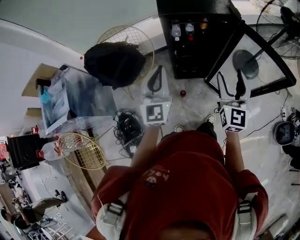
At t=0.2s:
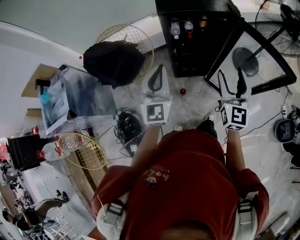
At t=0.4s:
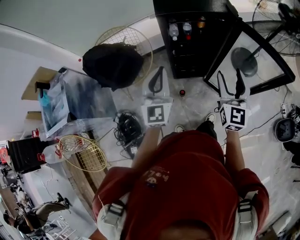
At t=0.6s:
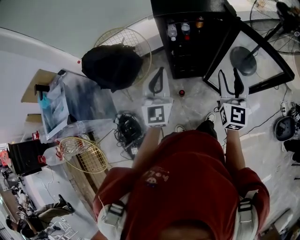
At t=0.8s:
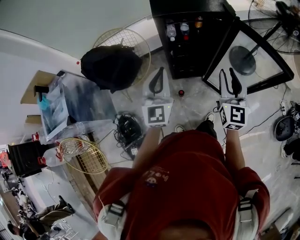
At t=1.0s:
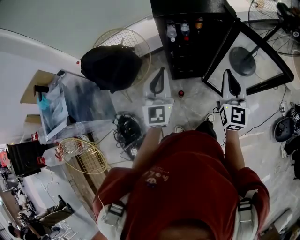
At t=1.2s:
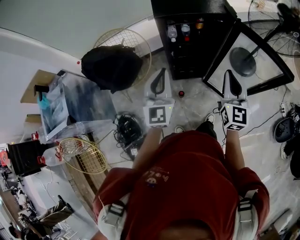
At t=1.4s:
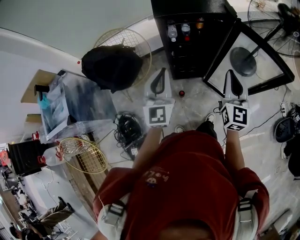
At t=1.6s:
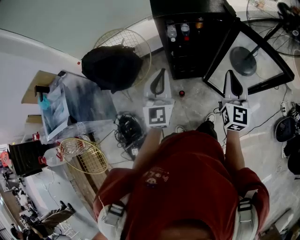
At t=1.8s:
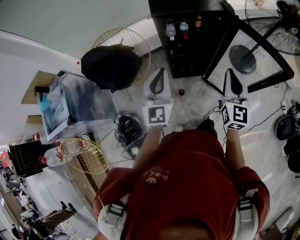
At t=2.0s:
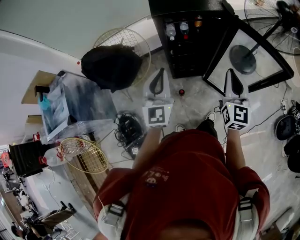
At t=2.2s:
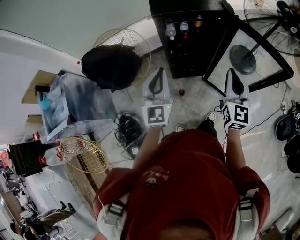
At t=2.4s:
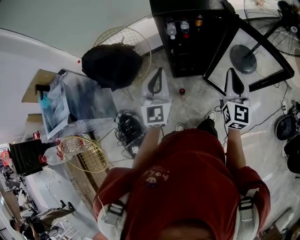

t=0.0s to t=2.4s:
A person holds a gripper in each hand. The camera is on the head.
t=0.0s to t=1.2s: The right gripper closes up.
t=1.2s to t=2.4s: There are only small adjustments of the grippers.

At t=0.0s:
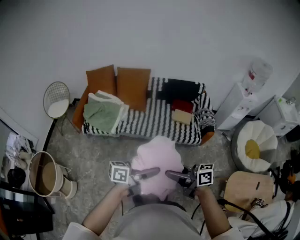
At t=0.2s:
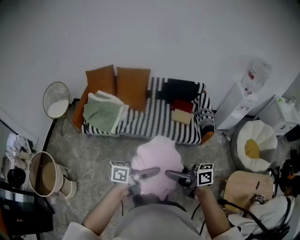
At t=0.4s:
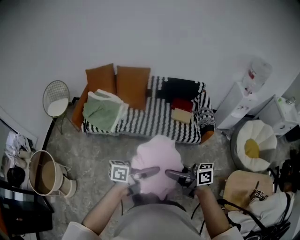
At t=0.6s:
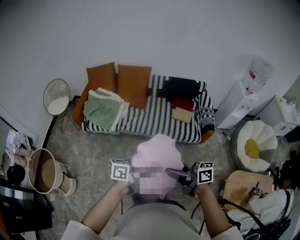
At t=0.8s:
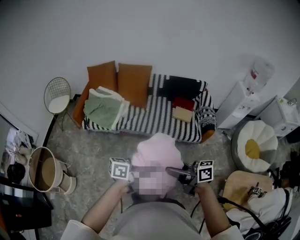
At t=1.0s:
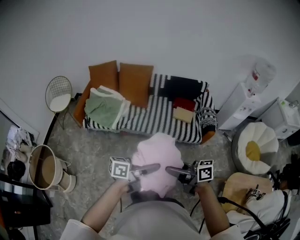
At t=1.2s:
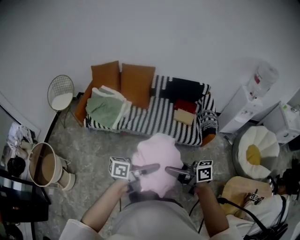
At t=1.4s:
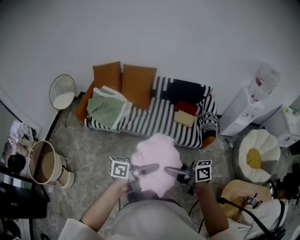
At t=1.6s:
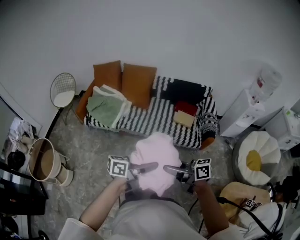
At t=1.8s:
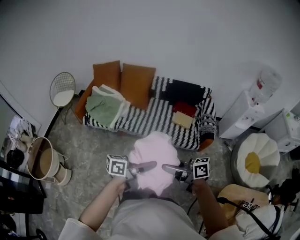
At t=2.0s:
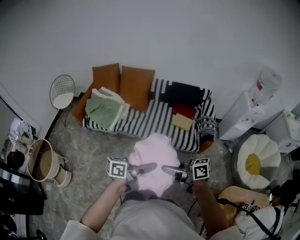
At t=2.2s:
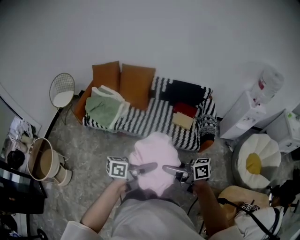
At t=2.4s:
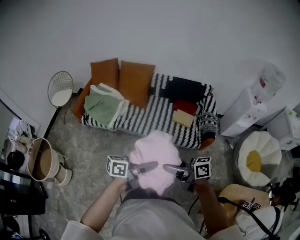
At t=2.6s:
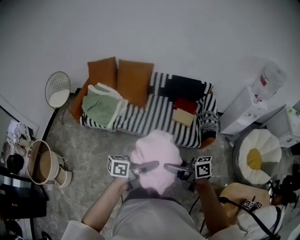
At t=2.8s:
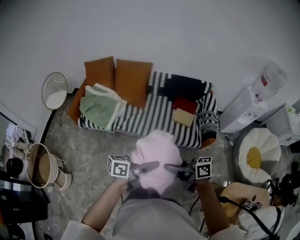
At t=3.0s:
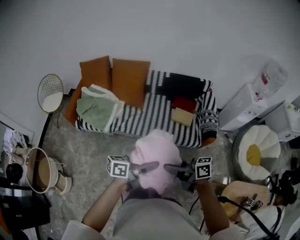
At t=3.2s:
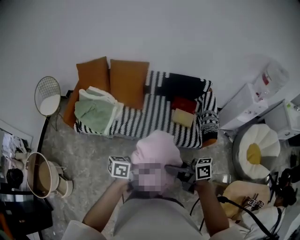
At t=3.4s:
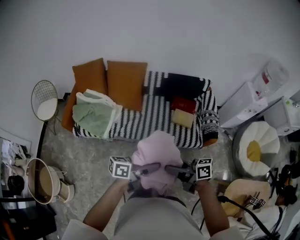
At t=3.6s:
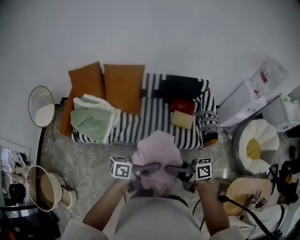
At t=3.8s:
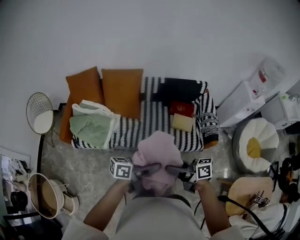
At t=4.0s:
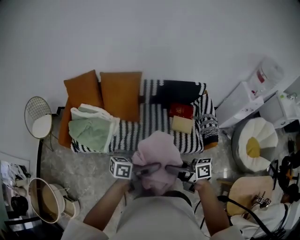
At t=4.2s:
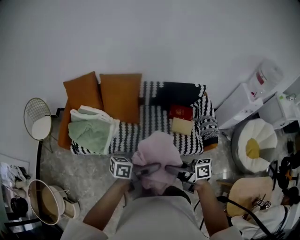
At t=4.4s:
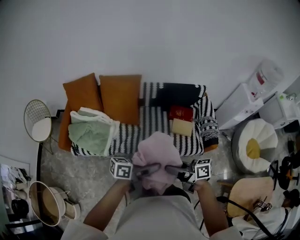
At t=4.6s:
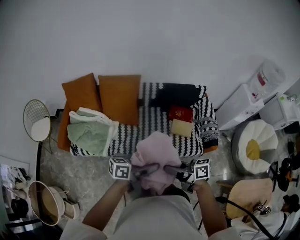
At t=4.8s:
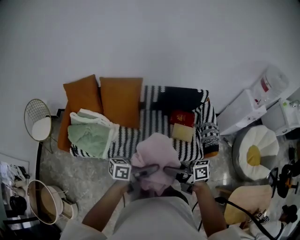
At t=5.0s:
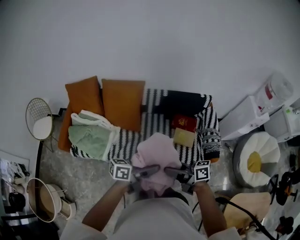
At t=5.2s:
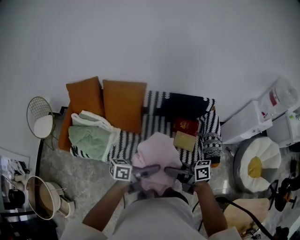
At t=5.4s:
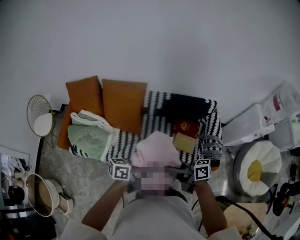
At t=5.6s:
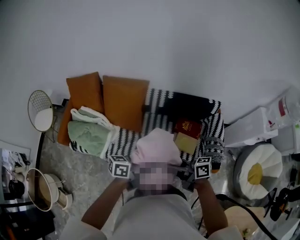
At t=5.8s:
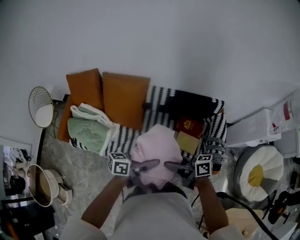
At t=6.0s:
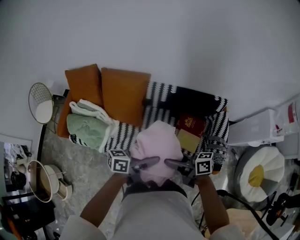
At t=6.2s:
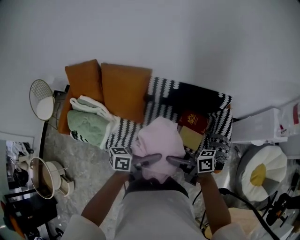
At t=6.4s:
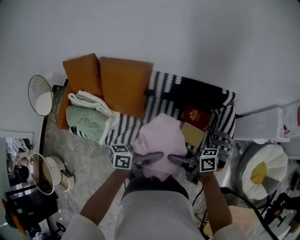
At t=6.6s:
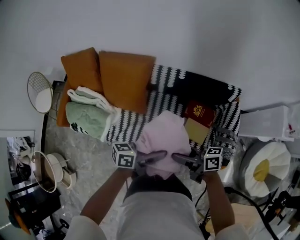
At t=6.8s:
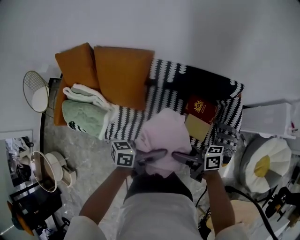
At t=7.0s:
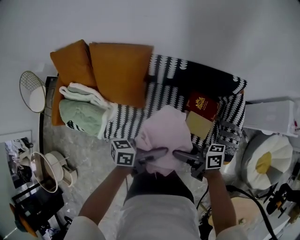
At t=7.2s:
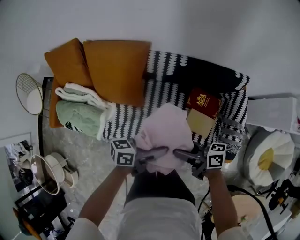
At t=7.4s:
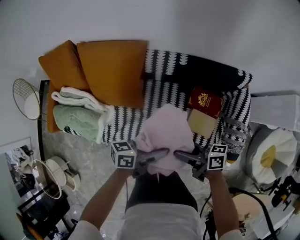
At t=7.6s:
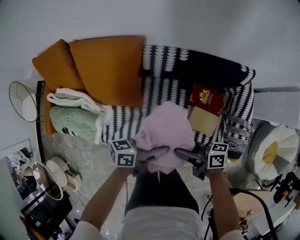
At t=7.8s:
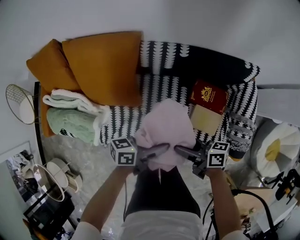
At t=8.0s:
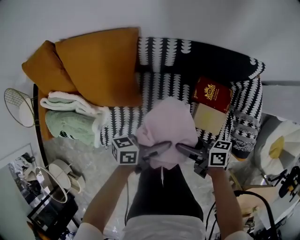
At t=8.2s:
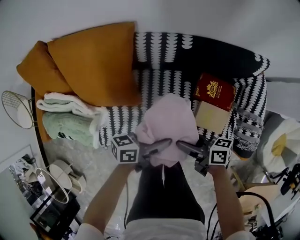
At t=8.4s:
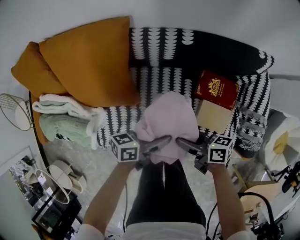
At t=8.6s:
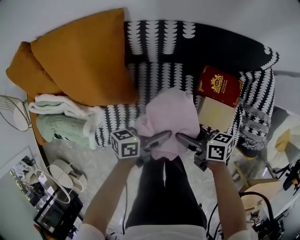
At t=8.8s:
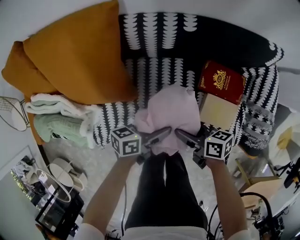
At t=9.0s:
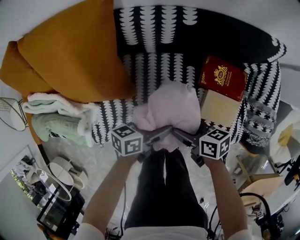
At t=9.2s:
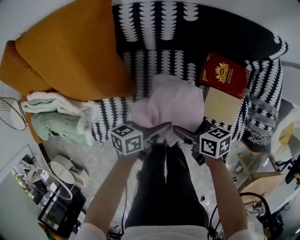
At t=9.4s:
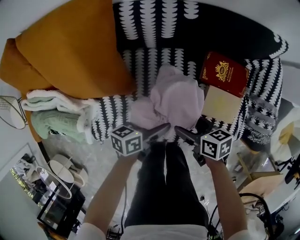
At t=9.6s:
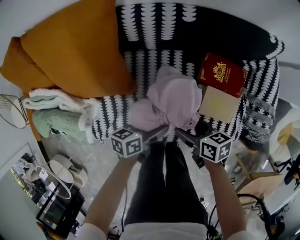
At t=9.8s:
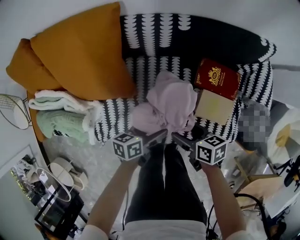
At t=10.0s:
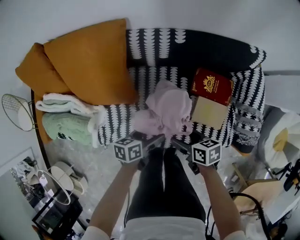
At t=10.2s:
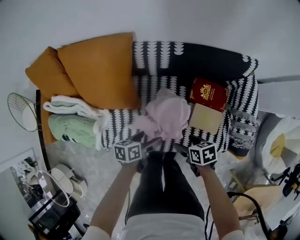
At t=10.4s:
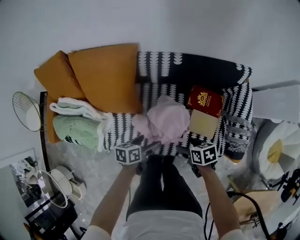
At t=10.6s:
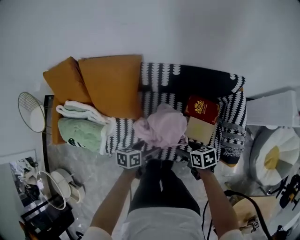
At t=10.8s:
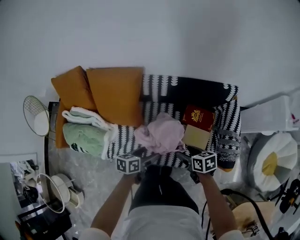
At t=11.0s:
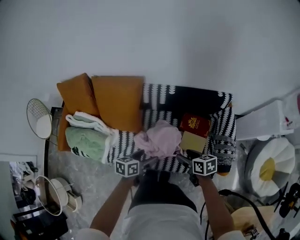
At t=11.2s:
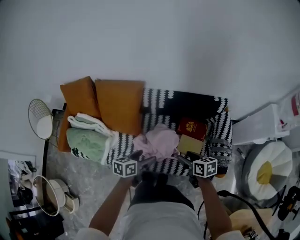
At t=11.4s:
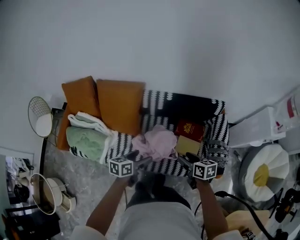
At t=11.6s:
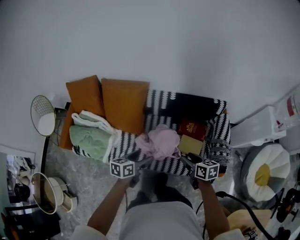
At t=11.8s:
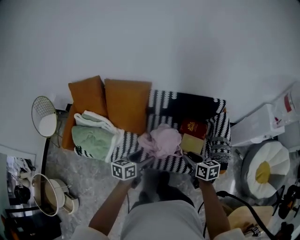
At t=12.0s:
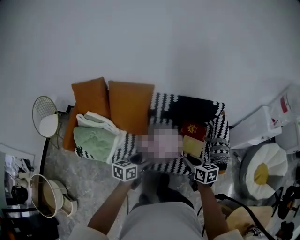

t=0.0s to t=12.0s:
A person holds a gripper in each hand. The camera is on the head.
t=0.0s to t=1.6s: The left gripper shifts by roughly 10 cm. Meanwhile the right gripper shifts by roughly 10 cm.
t=1.6s to t=3.0s: The right gripper changes place by about 20 cm. Meanwhile the left gripper changes place by some 20 cm.
t=3.0s to t=4.4s: The right gripper changes place by some 20 cm. The left gripper ends up approximately 20 cm from where it was.
t=4.4s to t=6.0s: The right gripper changes place by approximately 30 cm; the left gripper shifts by approximately 30 cm.
t=6.0s to t=7.6s: The two grippers go about 25 cm downward.
t=7.6s to t=9.0s: Both grippers move downward, some 25 cm. The right gripper changes its angle by about 30 degrees.
t=9.0s to t=10.4s: Both grippers travel together upward, approximately 15 cm. The right gripper rotates roughly 20 degrees.
t=10.4s to t=12.0s: Both grippers move upward, some 30 cm. The left gripper changes its angle by some 30 degrees; the right gripper rotates about 30 degrees, and closes its fingers.

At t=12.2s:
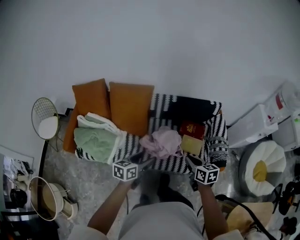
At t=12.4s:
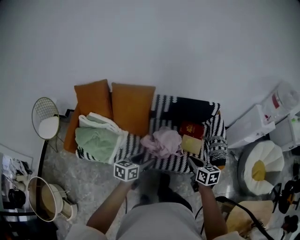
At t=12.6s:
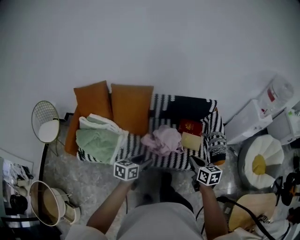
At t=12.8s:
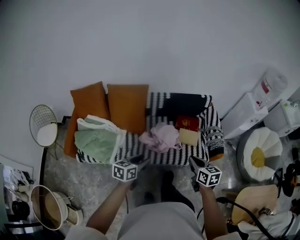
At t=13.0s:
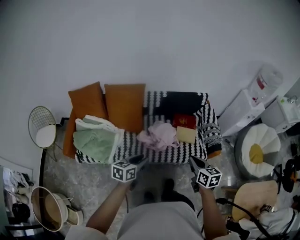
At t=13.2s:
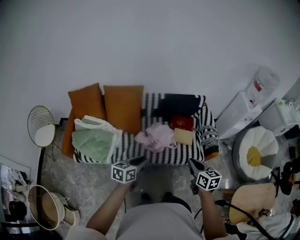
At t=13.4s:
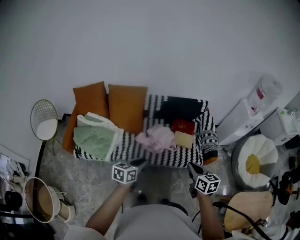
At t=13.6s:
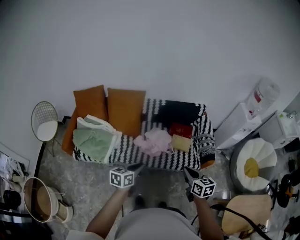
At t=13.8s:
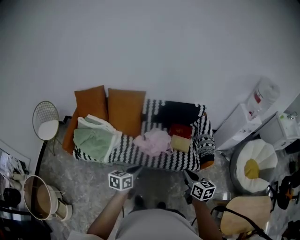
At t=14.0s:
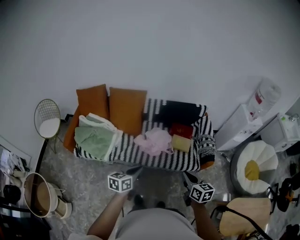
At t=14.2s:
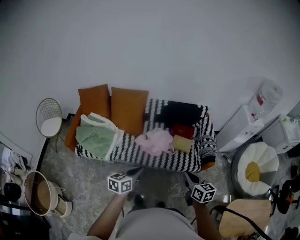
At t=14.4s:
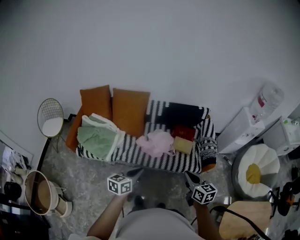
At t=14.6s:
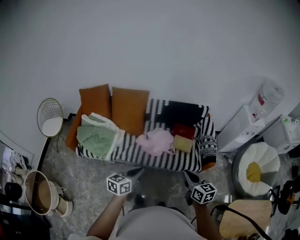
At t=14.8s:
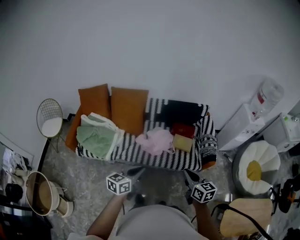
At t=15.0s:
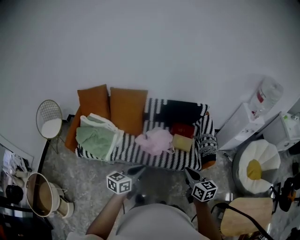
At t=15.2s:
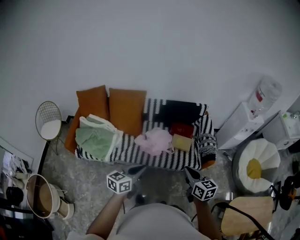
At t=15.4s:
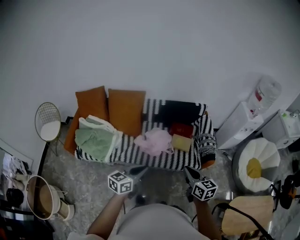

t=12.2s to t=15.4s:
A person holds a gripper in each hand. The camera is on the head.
t=12.2s to t=13.8s: The grippers both shift backward by roughly 25 cm. The left gripper closes.
t=13.8s to t=15.4s: The left gripper heads to the right and upward, covering approximately 5 cm.

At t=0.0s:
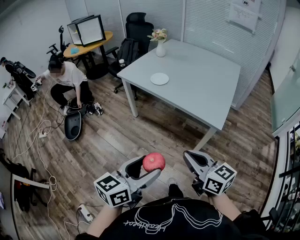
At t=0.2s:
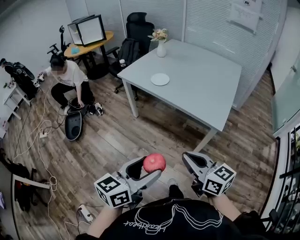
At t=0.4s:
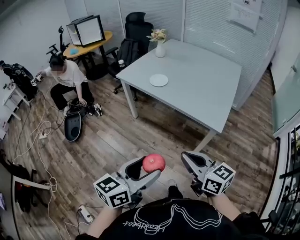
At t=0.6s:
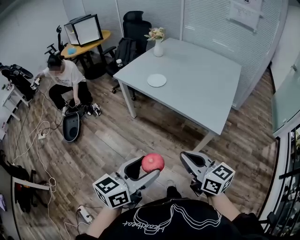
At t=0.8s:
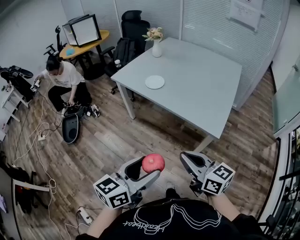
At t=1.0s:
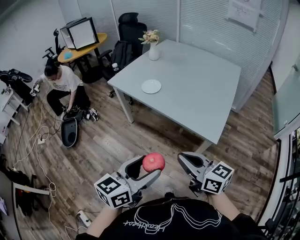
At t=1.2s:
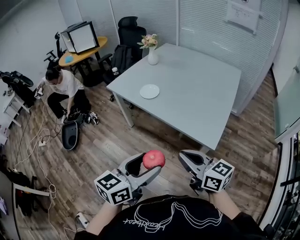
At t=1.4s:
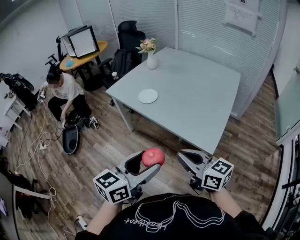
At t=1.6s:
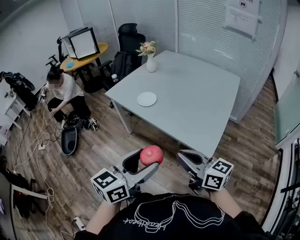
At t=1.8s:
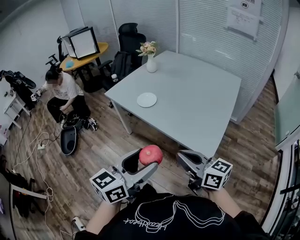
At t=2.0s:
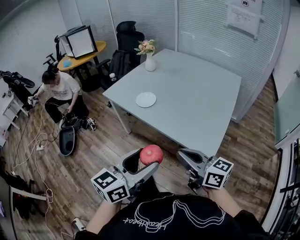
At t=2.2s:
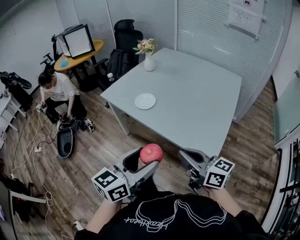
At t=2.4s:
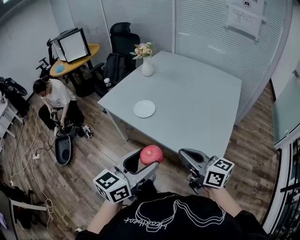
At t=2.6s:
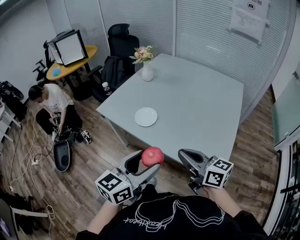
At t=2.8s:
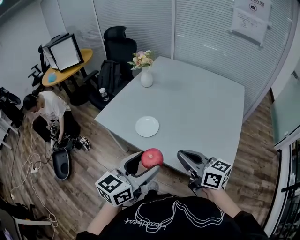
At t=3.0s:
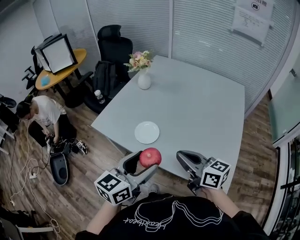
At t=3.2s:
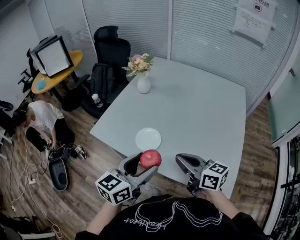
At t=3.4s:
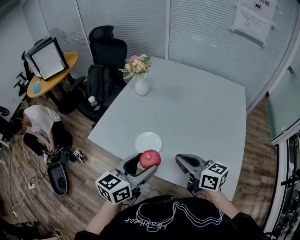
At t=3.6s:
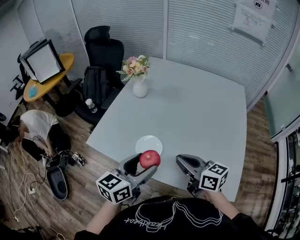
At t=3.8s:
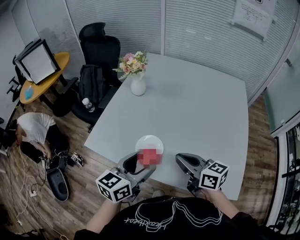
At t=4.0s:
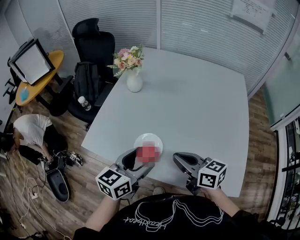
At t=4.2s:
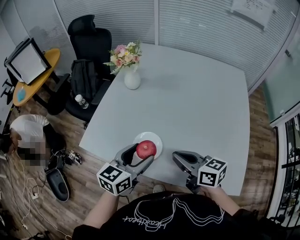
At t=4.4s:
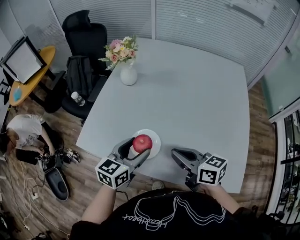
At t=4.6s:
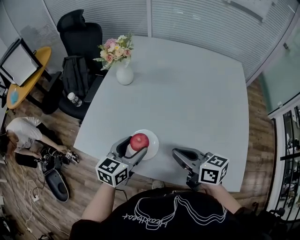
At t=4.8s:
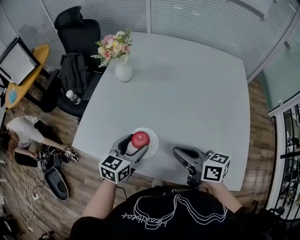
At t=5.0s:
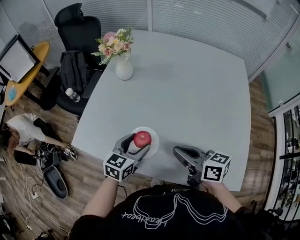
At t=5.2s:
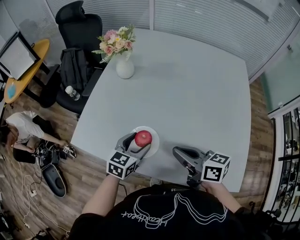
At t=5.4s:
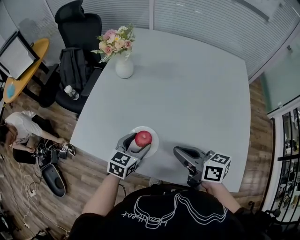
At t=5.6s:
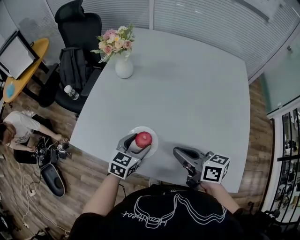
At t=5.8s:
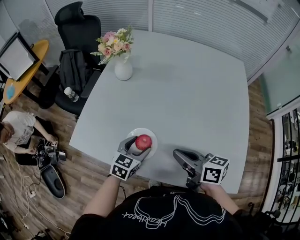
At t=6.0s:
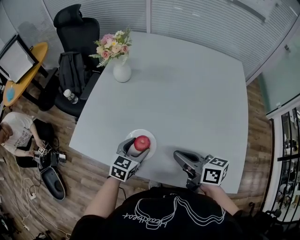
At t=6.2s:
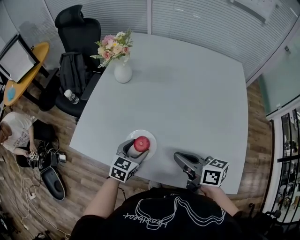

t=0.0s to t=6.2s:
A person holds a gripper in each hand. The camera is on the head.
t=0.0s to t=1.6s: The grippers both shift forward and to the right by approximately 20 cm.
t=1.6s to t=3.2s: The two grippers go approximately 35 cm forward.
t=3.2s to t=4.6s: The right gripper moves forward and downward, about 15 cm. The left gripper heads forward and downward, covering about 25 cm.
t=4.6s to t=6.2s: The left gripper moves downward, about 10 cm.
